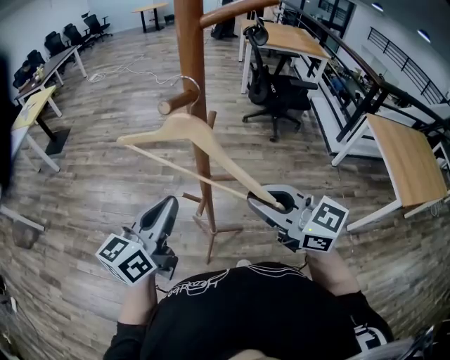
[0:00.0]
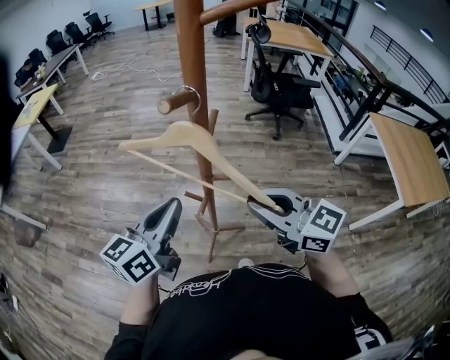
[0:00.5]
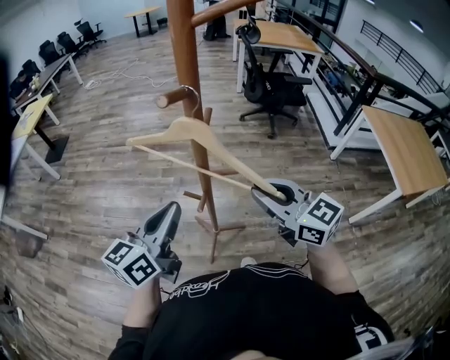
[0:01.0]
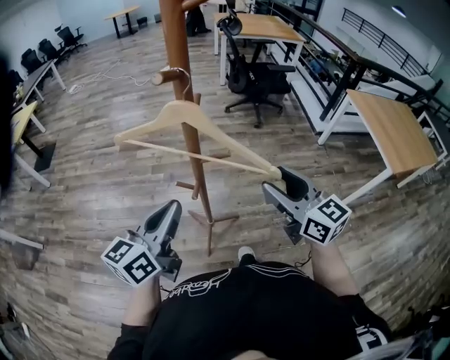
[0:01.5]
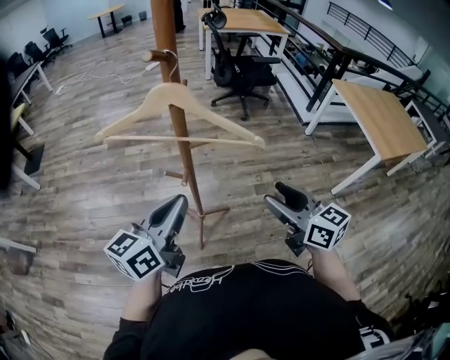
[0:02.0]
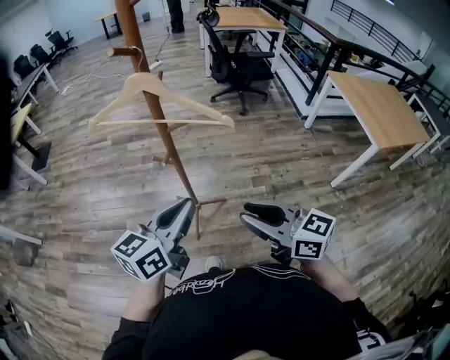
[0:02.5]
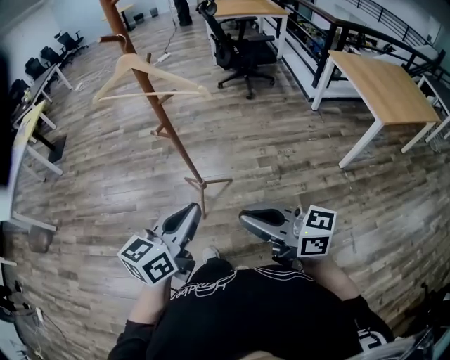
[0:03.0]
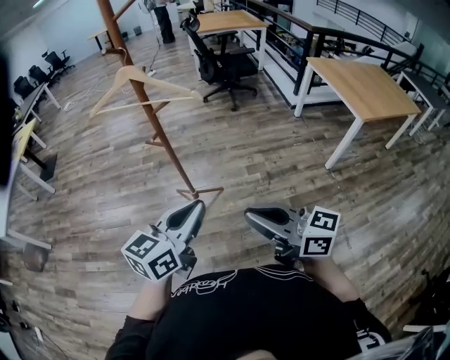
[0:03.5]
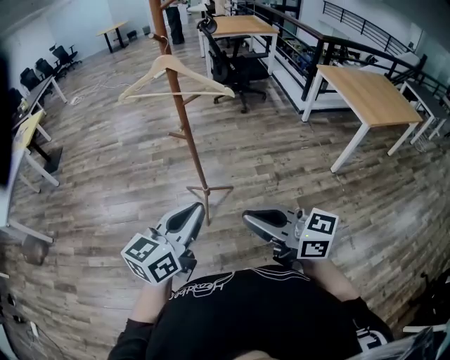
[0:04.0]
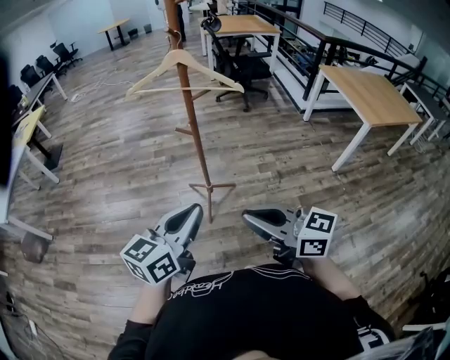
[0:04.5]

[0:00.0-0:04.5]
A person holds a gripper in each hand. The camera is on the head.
0:00.0 to 0:02.0: The left gripper heads backward, covering about 5 cm. The right gripper is displaced to the right, backward and downward by about 15 cm, turns by approximately 30 degrees, and opens its fingers.
0:02.0 to 0:04.5: The right gripper moves backward and to the left, about 35 cm, swivels approximately 20 degrees, and closes its fingers. The left gripper moves backward, approximately 30 cm.

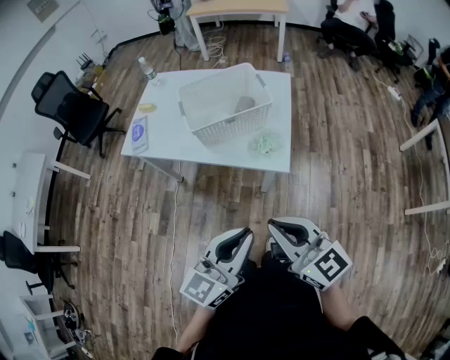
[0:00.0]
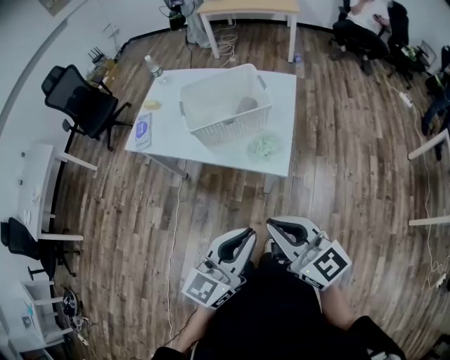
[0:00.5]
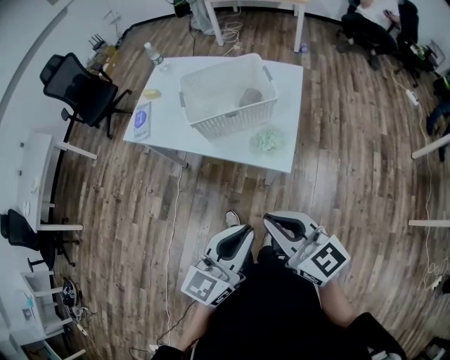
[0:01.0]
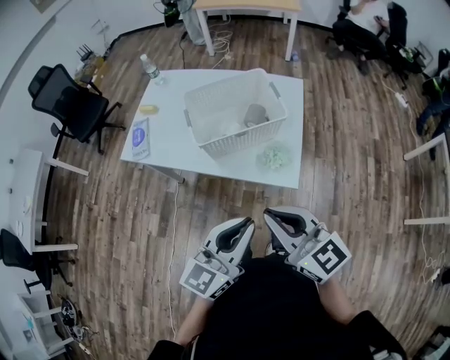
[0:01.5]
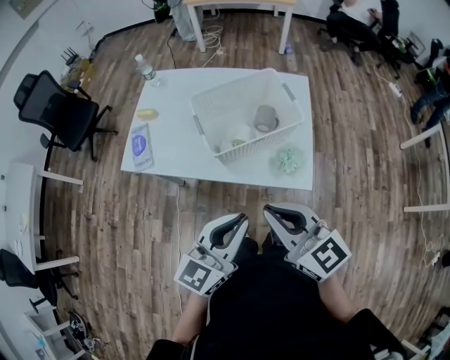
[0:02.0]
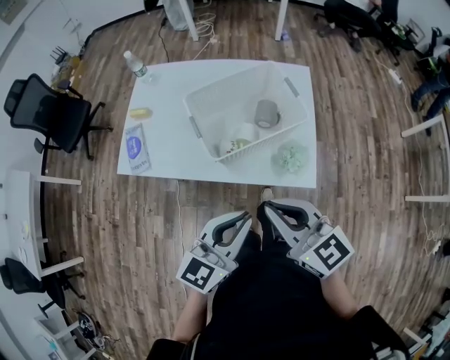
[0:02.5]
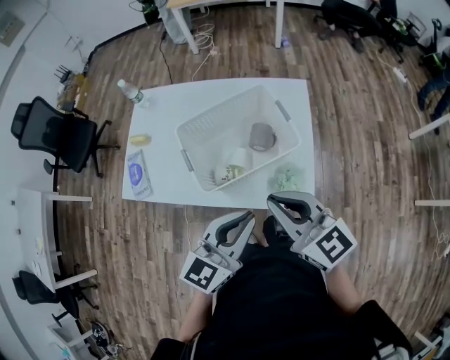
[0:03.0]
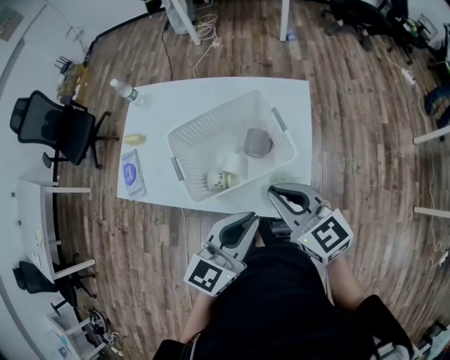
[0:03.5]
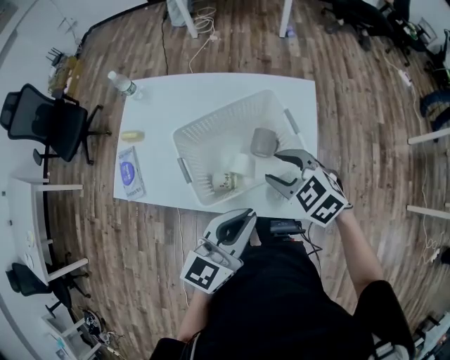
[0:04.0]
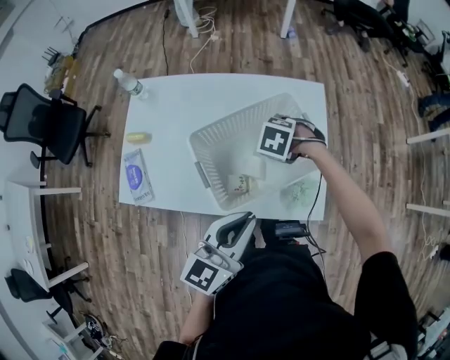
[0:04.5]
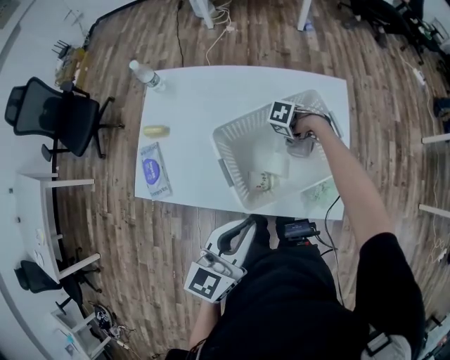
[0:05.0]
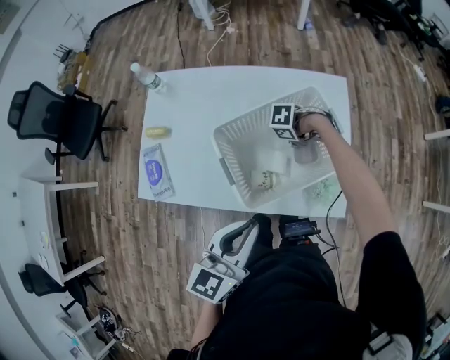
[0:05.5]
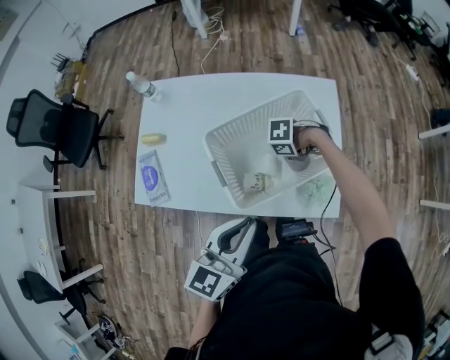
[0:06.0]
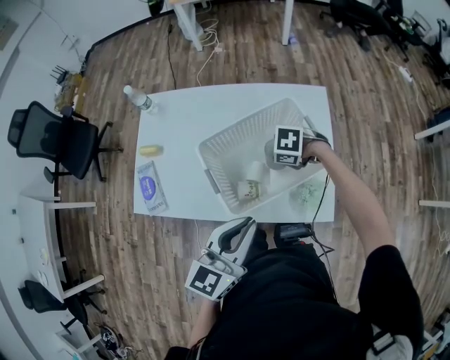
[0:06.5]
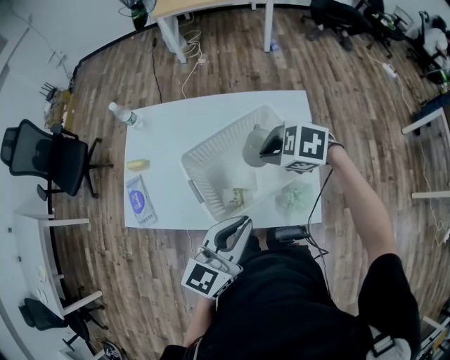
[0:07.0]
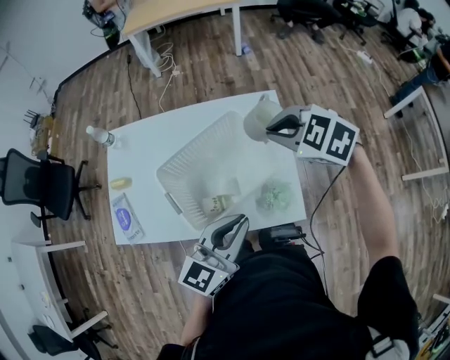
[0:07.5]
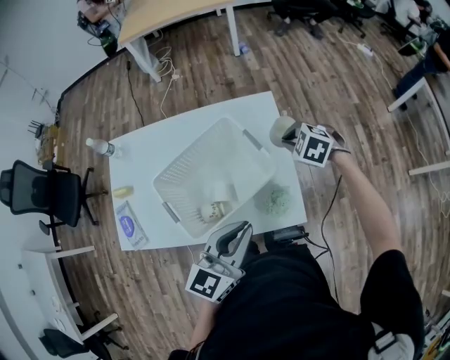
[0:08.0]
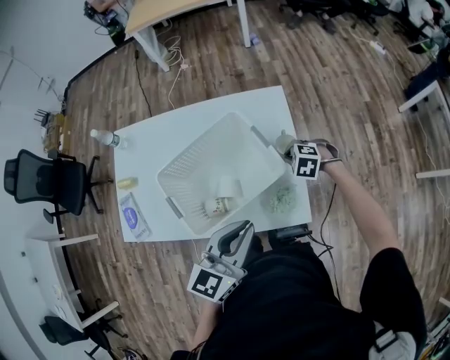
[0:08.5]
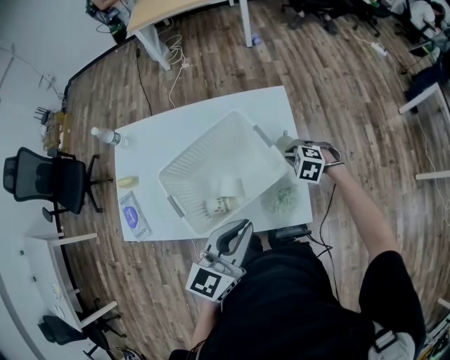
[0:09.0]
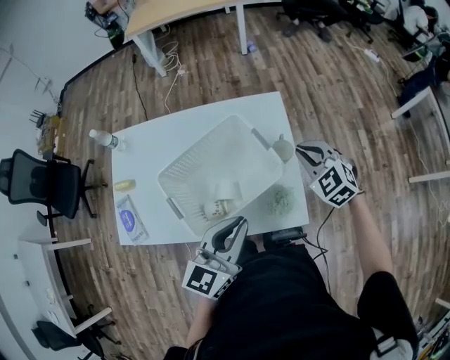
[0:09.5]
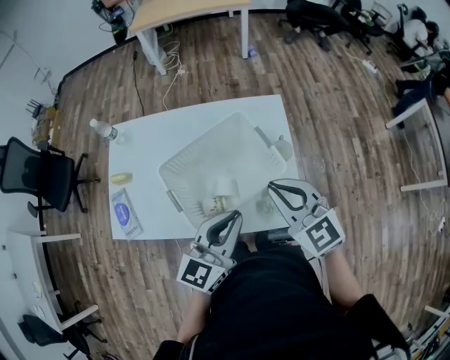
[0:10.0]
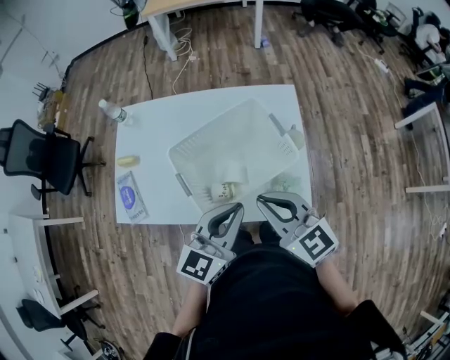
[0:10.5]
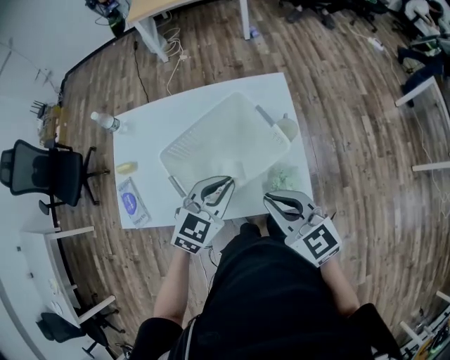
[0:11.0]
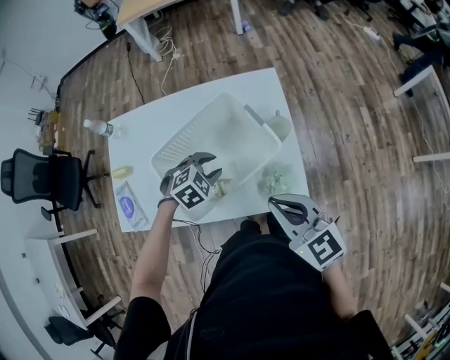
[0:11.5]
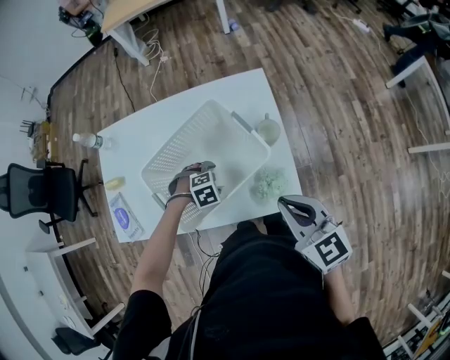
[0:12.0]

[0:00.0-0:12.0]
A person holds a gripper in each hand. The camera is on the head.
0:00.0 to 0:02.0: Both grippers move forward and to the left, roughly 20 cm.
0:02.0 to 0:04.0: The left gripper shifts roughly 20 cm forward. The right gripper shifts roughly 30 cm forward and downward, tips its fingers downward by approximately 30 degrees, and opens its fingers.
0:04.0 to 0:06.0: The right gripper shifts some 20 cm downward, swivels some 60 degrees, and closes. The left gripper shifts by some 10 cm.
0:06.0 to 0:08.0: The left gripper changes place by about 15 cm, while the right gripper shifts by roughly 25 cm, and changes its angle by approximately 50 degrees.
0:08.0 to 0:10.0: The right gripper is displaced upward, backward and to the left by some 25 cm, and tilts its fingers roughly 40 degrees upward.
0:10.0 to 0:12.0: The left gripper travels downward by approximately 30 cm, tips its fingers downward by about 70 degrees, and opens its fingers; the right gripper moves some 10 cm, and changes its angle by roughly 20 degrees.

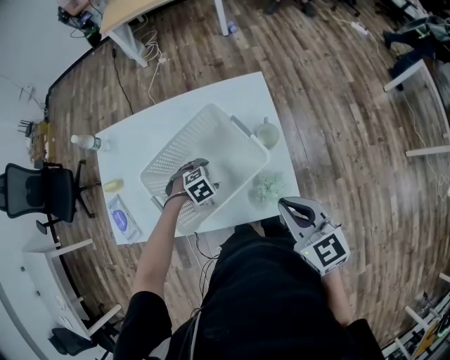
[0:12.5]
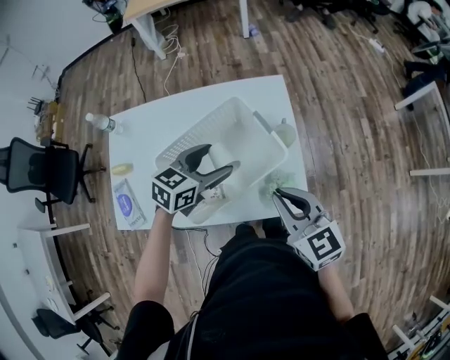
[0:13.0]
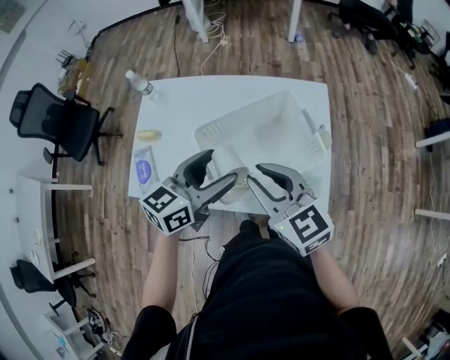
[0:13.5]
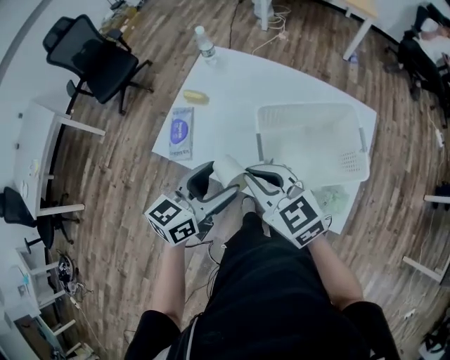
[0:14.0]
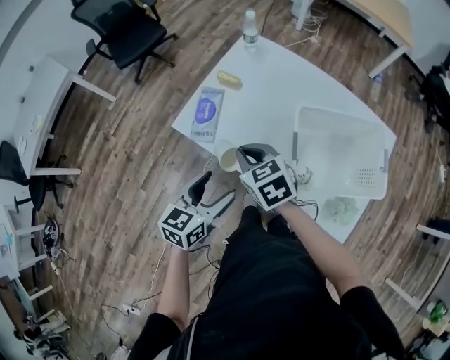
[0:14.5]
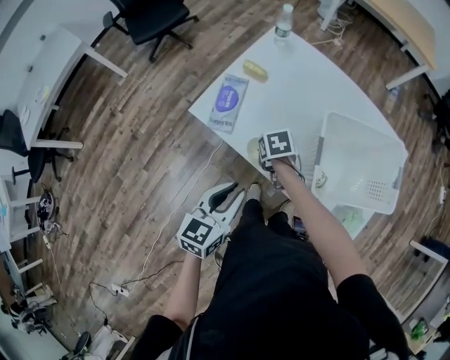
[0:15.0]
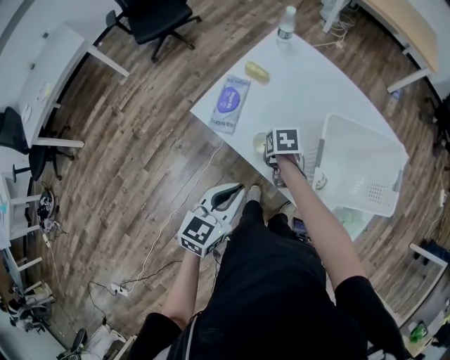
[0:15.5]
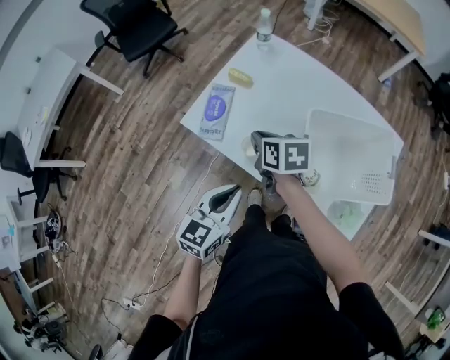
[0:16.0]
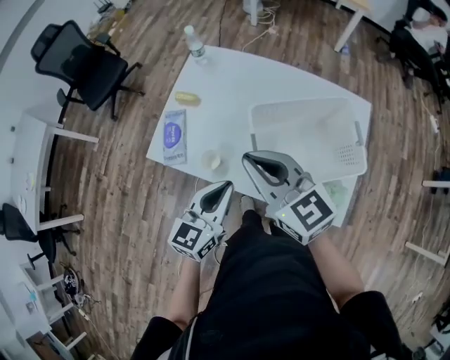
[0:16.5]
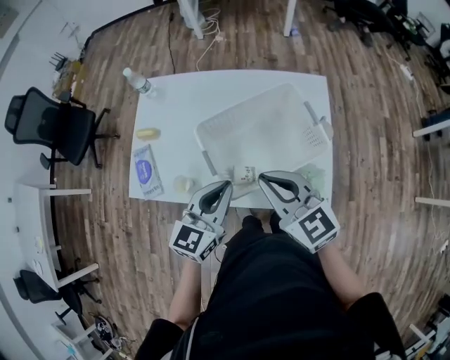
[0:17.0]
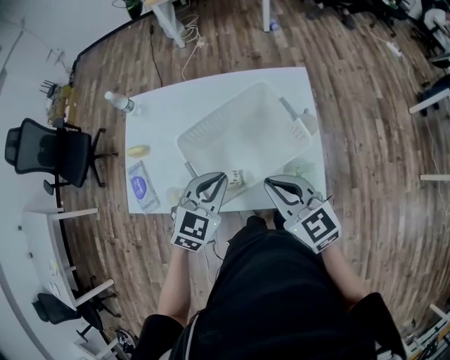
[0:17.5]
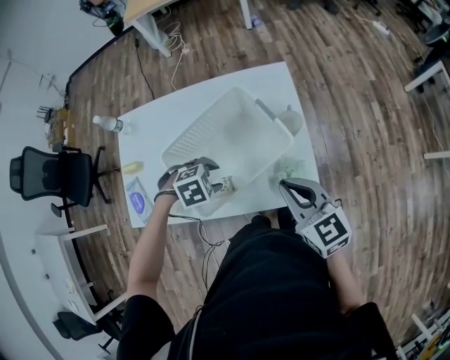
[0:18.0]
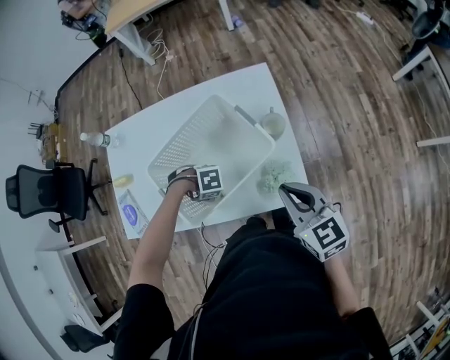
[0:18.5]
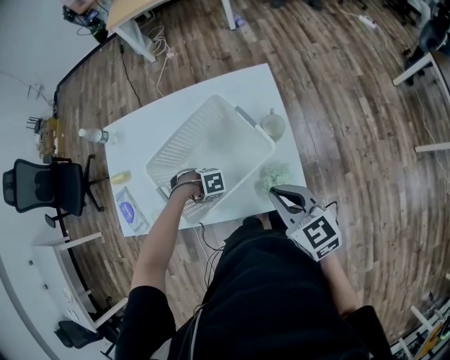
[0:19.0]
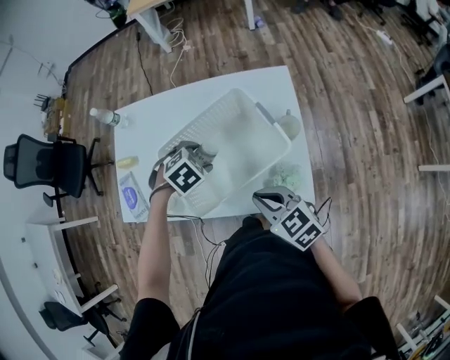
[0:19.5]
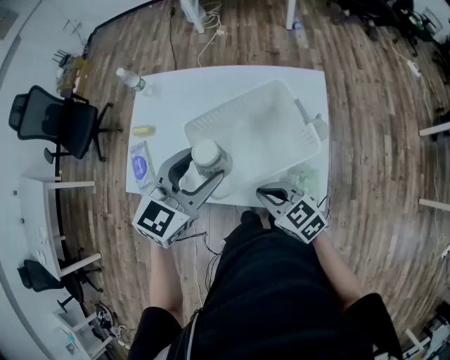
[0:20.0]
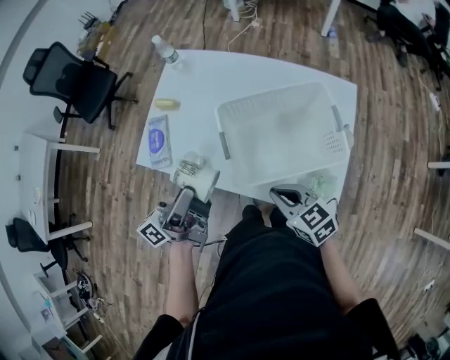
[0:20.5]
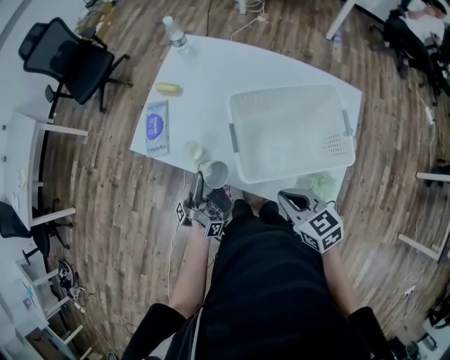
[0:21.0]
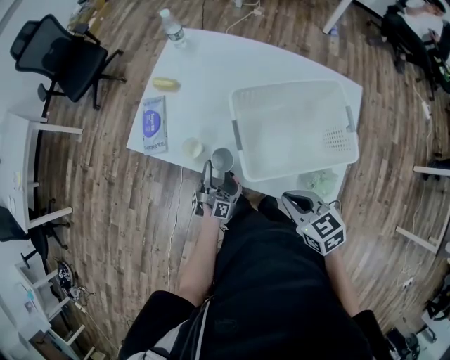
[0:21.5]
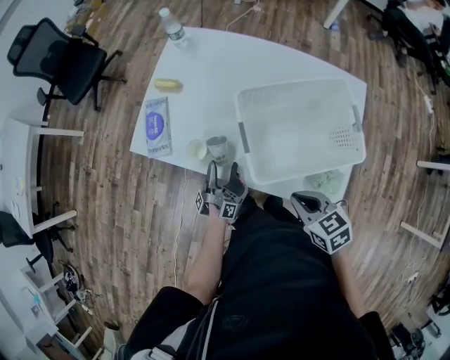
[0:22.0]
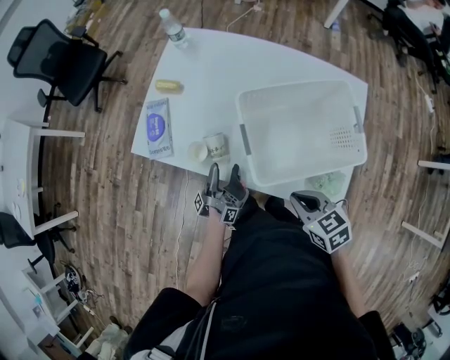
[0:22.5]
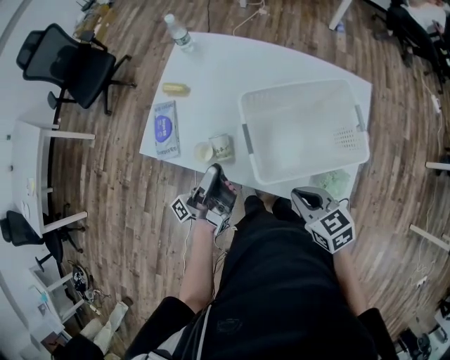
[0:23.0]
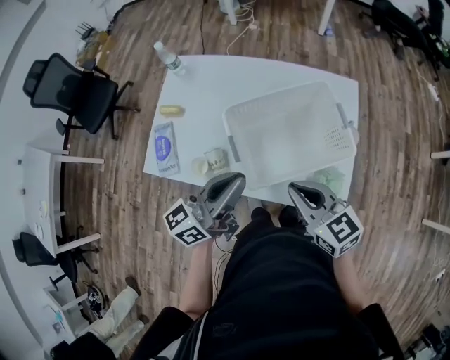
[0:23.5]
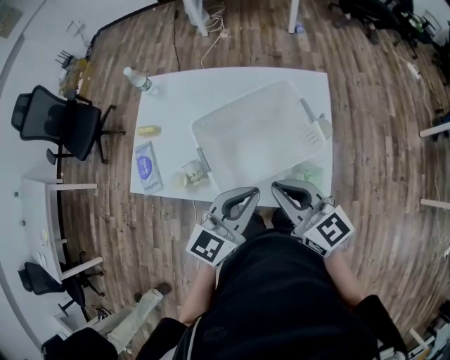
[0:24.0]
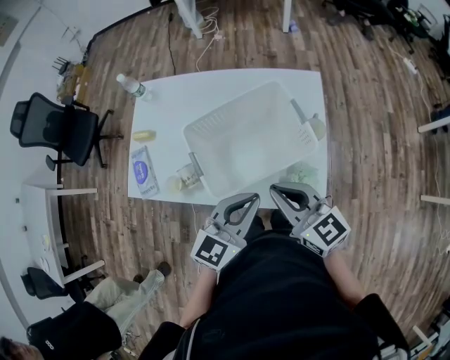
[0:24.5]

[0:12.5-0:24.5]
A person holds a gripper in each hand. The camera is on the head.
0:12.5 to 0:14.5: The left gripper moves about 40 cm, and tips its fingers upward by roughly 50 degrees. The right gripper ends up about 50 cm from where it was, and rotates some 50 degrees.
0:14.5 to 0:16.5: The right gripper moves upward and to the right, approximately 15 cm, and turns by about 30 degrees, while the left gripper travels to the right by some 10 cm, and closes up.
0:16.5 to 0:18.5: The left gripper heads downward, covering about 25 cm, angles its fingers downward, by some 50 degrees, and opens its fingers. Meanwhile the right gripper shifts by some 35 cm, and turns by about 40 degrees.
0:18.5 to 0:20.5: The right gripper changes place by approximately 20 cm, and changes its angle by roughly 40 degrees. Meanwhile the left gripper shifts some 30 cm upward, and tilts its fingers some 90 degrees upward.
0:20.5 to 0:22.5: The left gripper goes about 30 cm downward, and twists roughly 60 degrees counterclockwise, seen from behind.
0:22.5 to 0:24.5: The right gripper goes roughly 15 cm upward, and tips its fingers upward by about 30 degrees. The left gripper moves upward, about 25 cm, rotates around the line of its fingers by about 120 degrees, clockwise from behind, and closes up.
